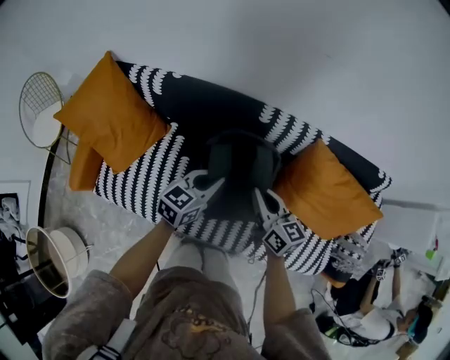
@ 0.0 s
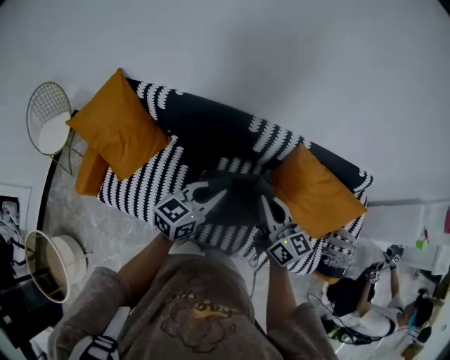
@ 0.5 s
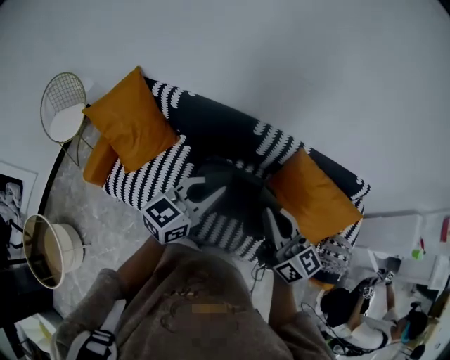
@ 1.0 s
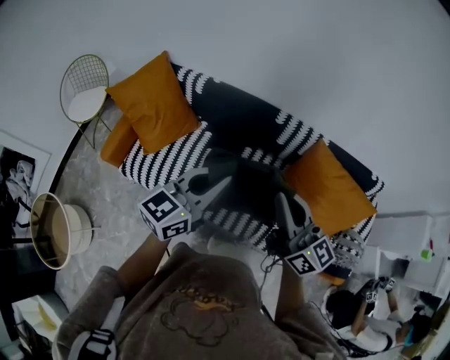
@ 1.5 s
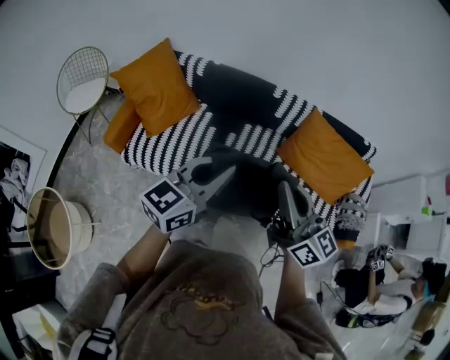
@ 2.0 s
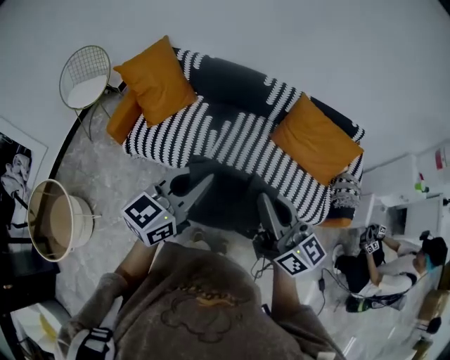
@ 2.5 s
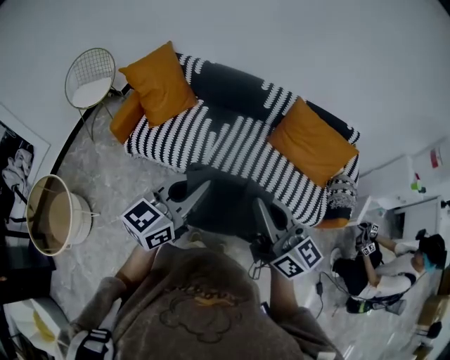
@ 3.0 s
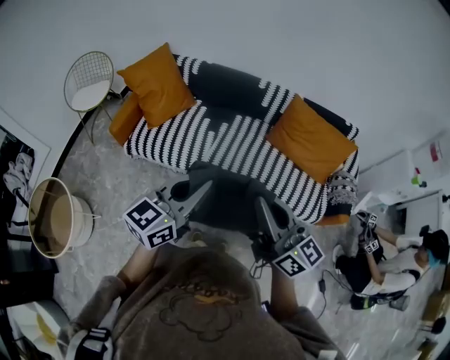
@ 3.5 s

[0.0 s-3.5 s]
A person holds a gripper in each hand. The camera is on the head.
0.0 to 2.0 s: Both grippers travel together backward and upward, roughly 50 cm. The right gripper turns by approximately 30 degrees, while the left gripper turns by approximately 20 degrees.
2.0 to 3.5 s: The grippers both shift backward by about 20 cm.

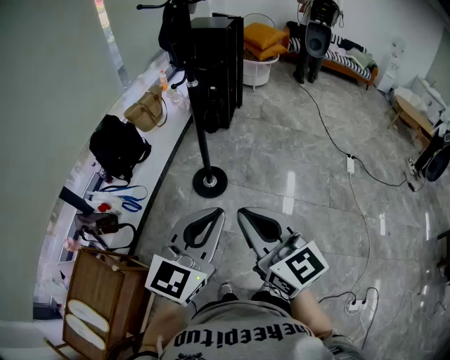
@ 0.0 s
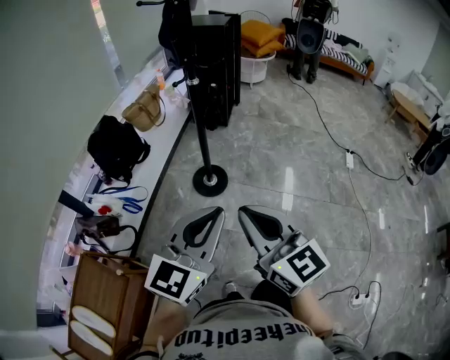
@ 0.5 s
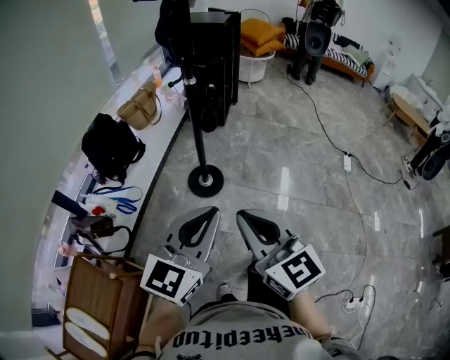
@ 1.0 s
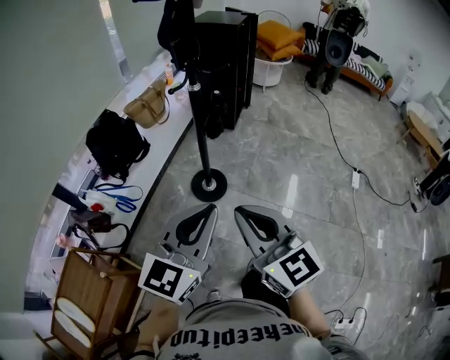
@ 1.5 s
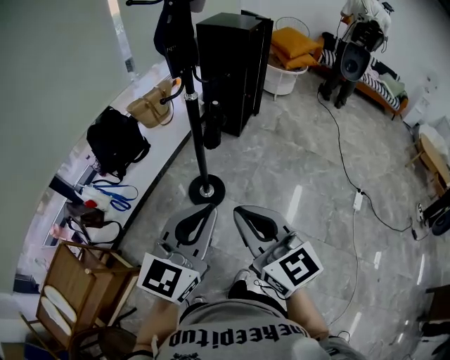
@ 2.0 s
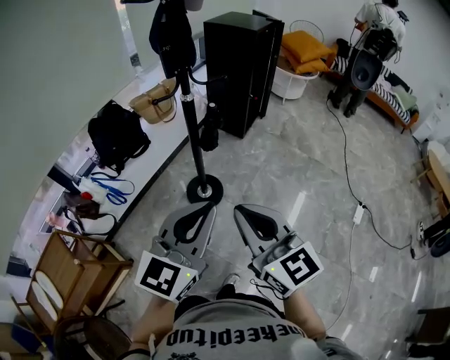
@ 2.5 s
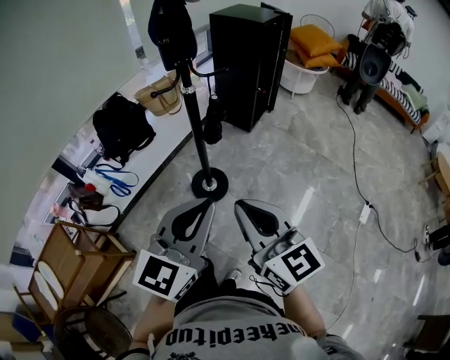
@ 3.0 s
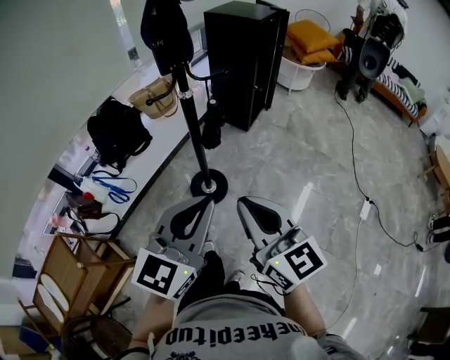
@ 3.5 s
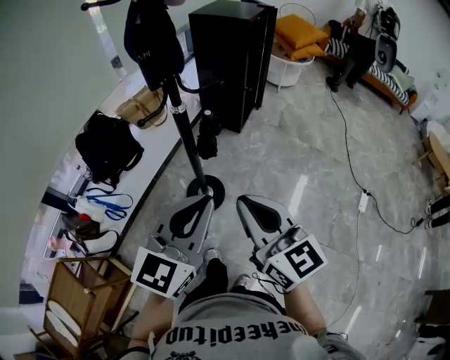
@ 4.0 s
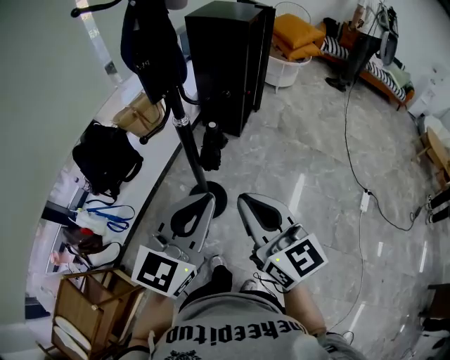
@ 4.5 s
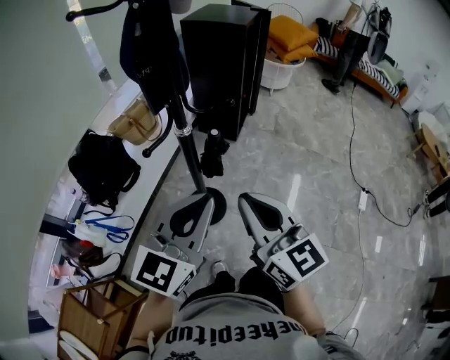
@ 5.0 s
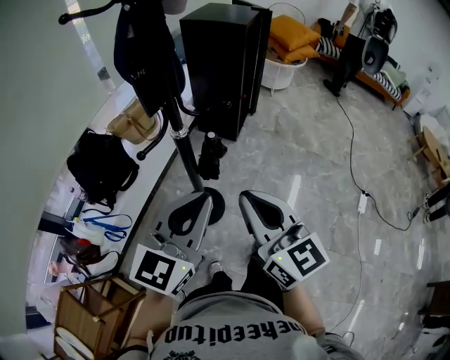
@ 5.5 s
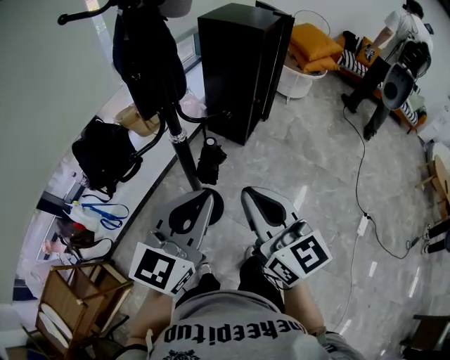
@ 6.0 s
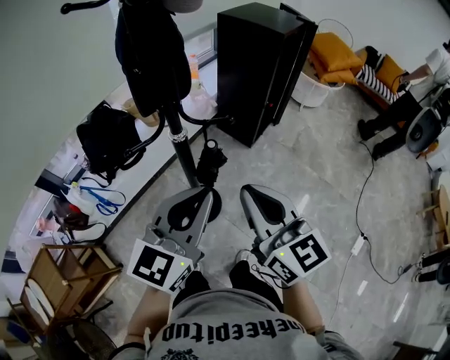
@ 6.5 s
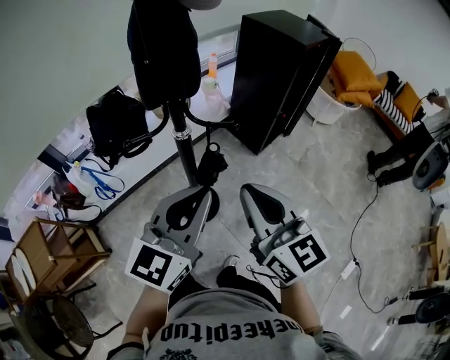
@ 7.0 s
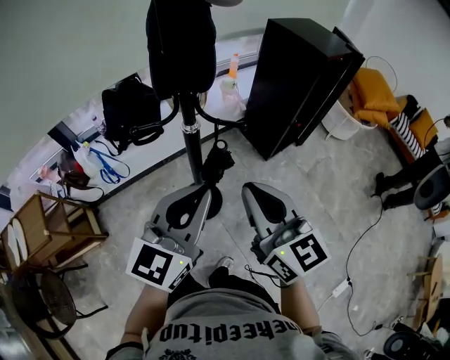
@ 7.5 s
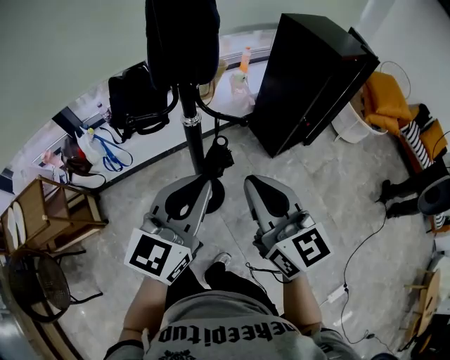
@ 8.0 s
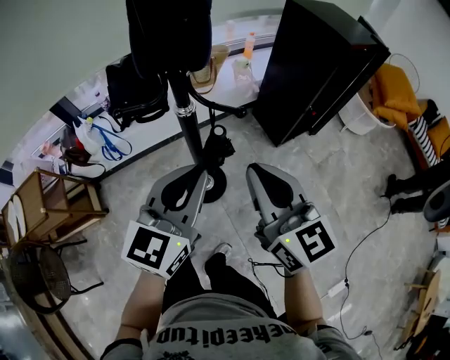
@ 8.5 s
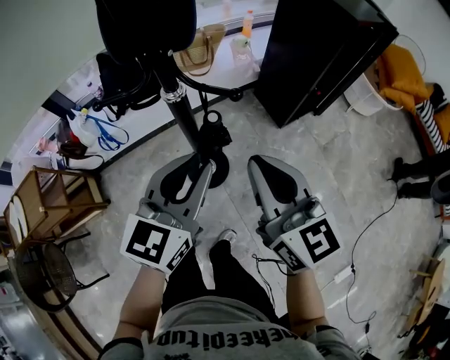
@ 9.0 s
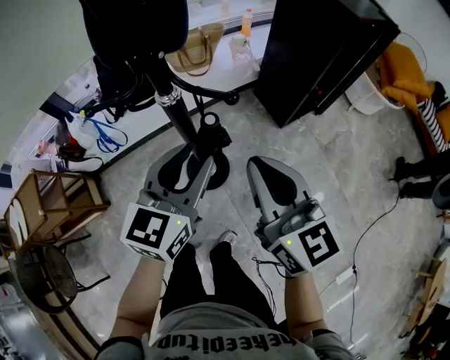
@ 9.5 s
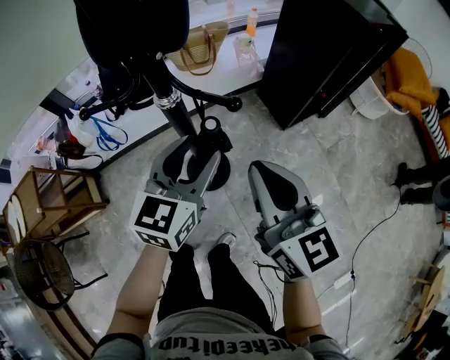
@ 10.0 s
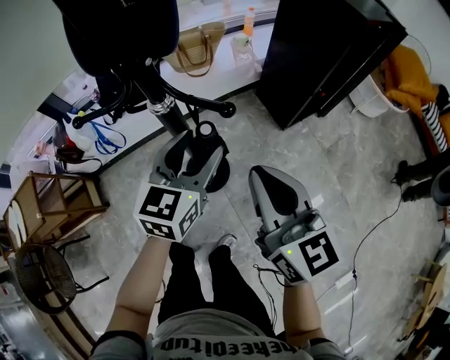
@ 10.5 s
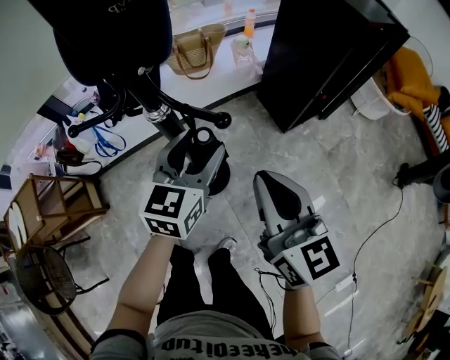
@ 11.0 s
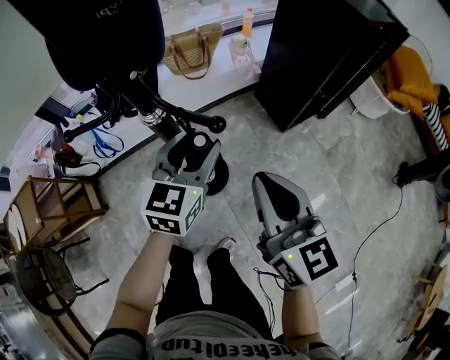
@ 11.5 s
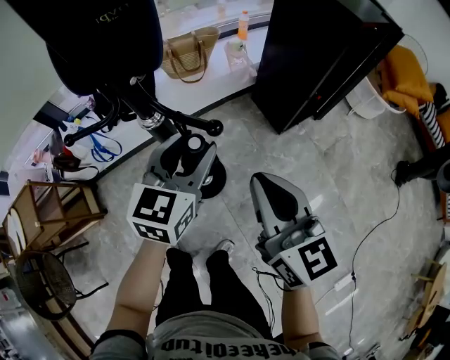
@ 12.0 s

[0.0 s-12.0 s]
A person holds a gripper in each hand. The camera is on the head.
0.0 to 2.0 s: Both grippers travel together forward and to the right, some 15 cm.
2.0 to 4.0 s: The two grippers go approximately 15 cm forward.
4.0 to 6.0 s: Both grippers move forward, about 15 cm.
6.0 to 8.0 s: The left gripper moves approximately 5 cm, and turns by about 30 degrees. Meanwhile the right gripper moves some 10 cm, and changes its angle by approximately 30 degrees.
8.0 to 10.0 s: The left gripper shifts about 15 cm downward and forward, and opens its fingers; the right gripper shifts approximately 10 cm downward and forward.
10.0 to 12.0 s: The left gripper moves about 5 cm.

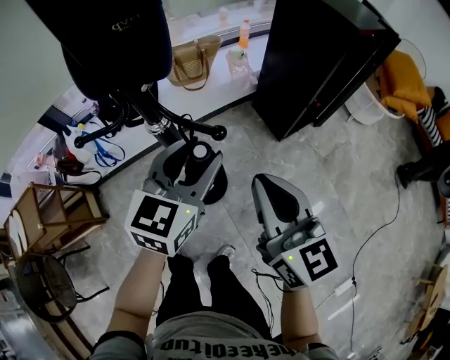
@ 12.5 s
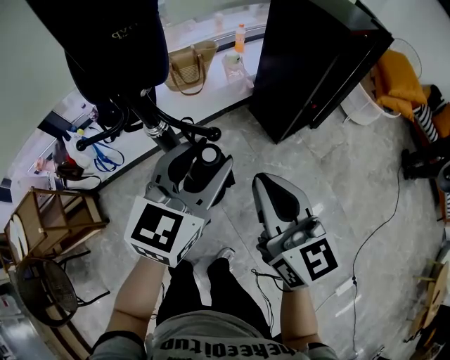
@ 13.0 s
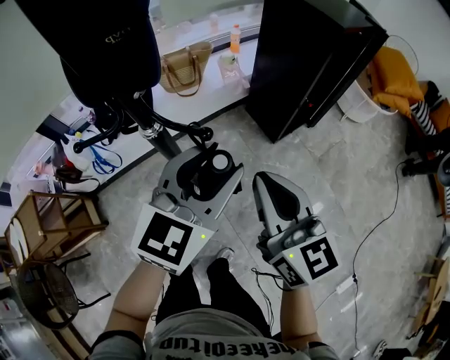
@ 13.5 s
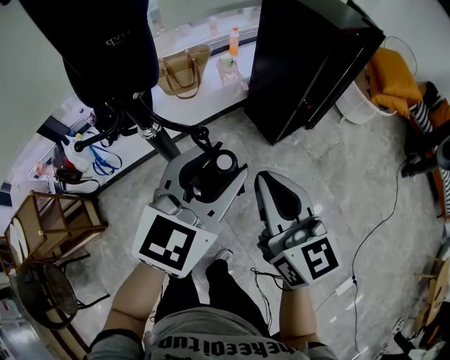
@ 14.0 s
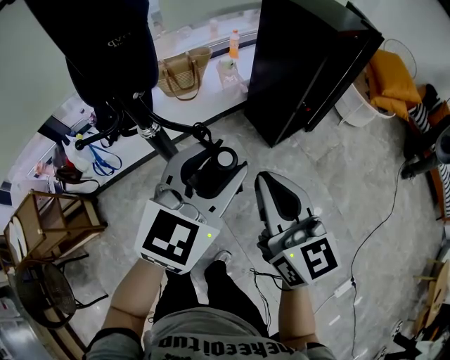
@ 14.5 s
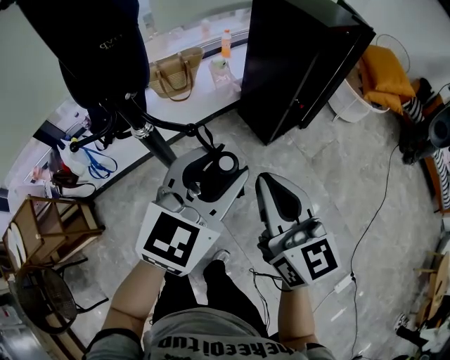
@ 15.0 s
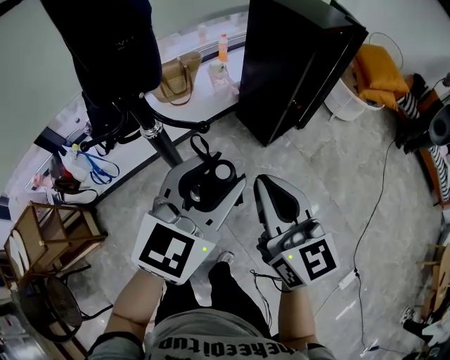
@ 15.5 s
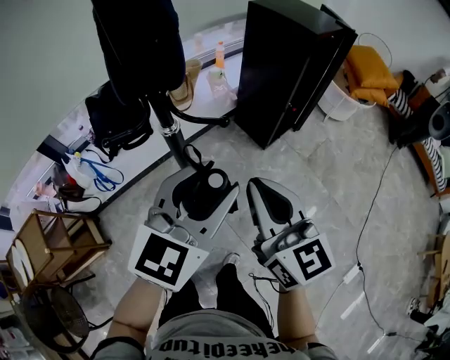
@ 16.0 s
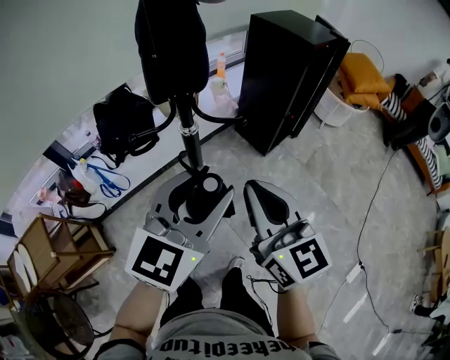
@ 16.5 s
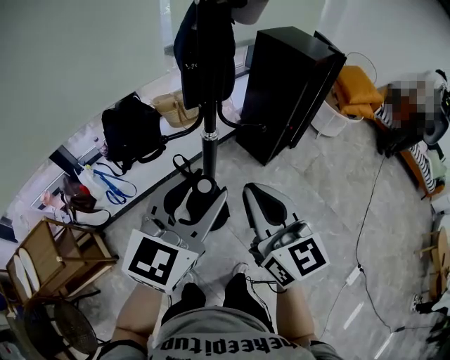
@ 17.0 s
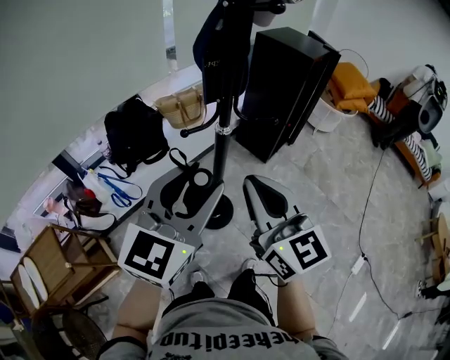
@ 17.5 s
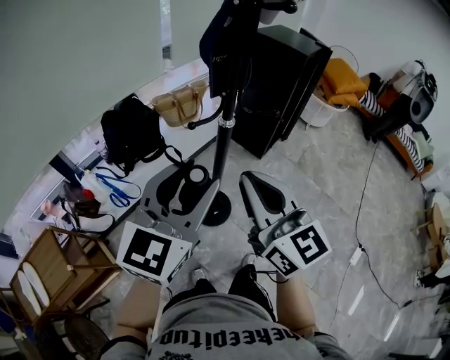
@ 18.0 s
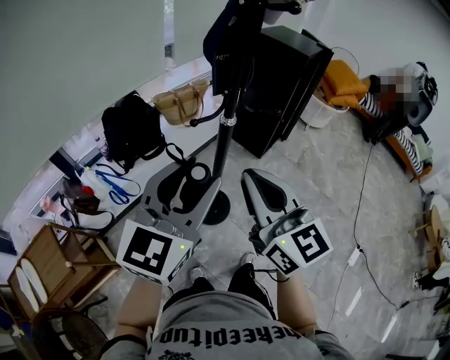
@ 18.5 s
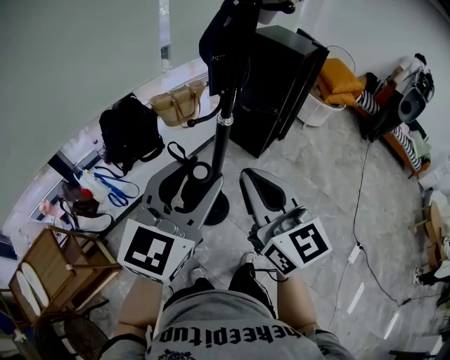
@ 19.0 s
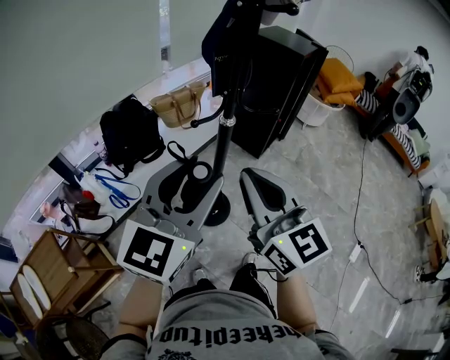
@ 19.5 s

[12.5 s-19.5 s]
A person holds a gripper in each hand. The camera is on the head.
12.5 to 14.5 s: The left gripper goes roughly 10 cm to the right and upward.
14.5 to 16.0 s: The grippers both shift backward and to the left by about 10 cm.
16.0 to 17.5 s: Both grippers move to the left and backward, approximately 20 cm.
17.5 to 19.5 s: The right gripper changes place by approximately 5 cm, while the left gripper ends up some 5 cm from where it was.

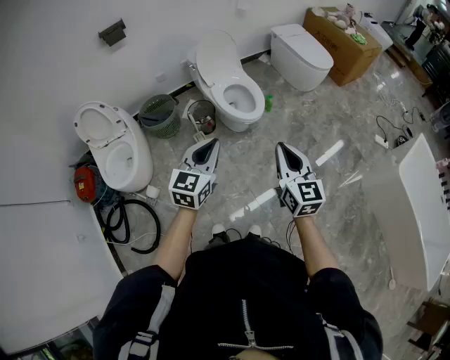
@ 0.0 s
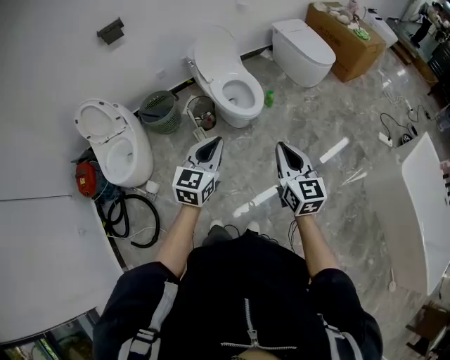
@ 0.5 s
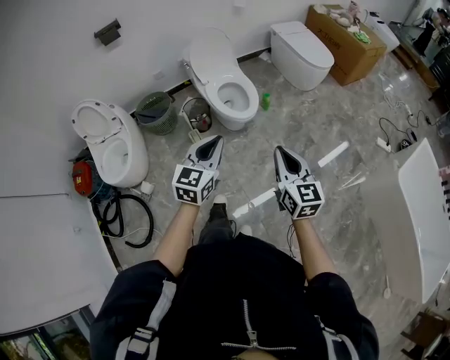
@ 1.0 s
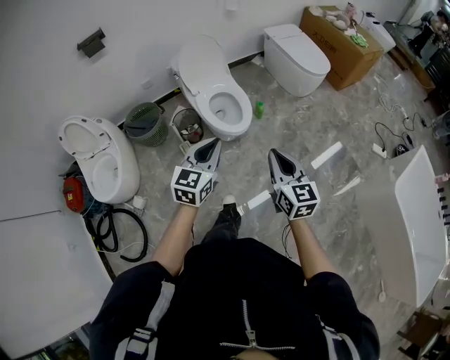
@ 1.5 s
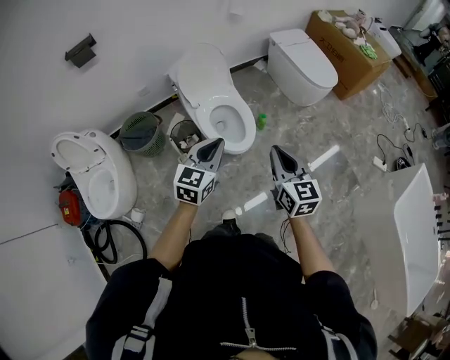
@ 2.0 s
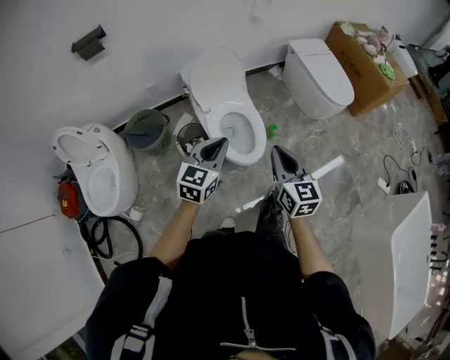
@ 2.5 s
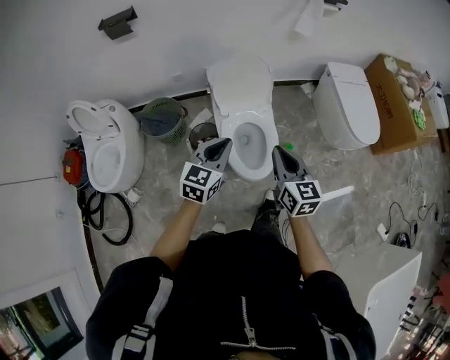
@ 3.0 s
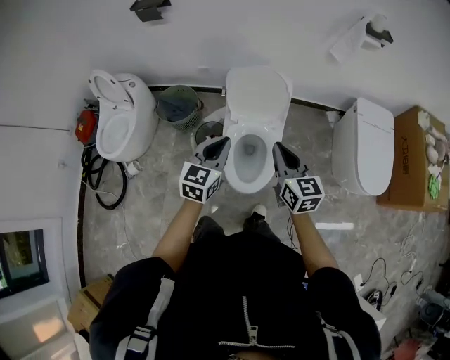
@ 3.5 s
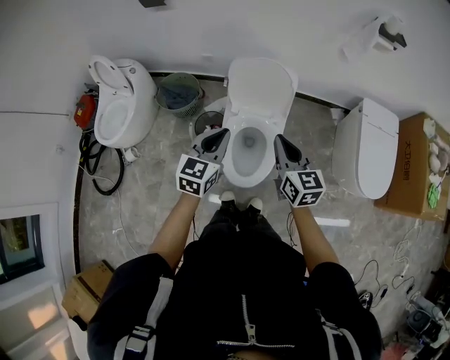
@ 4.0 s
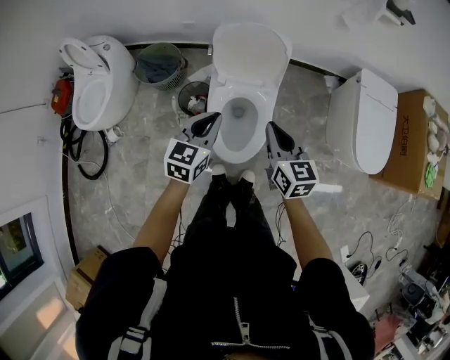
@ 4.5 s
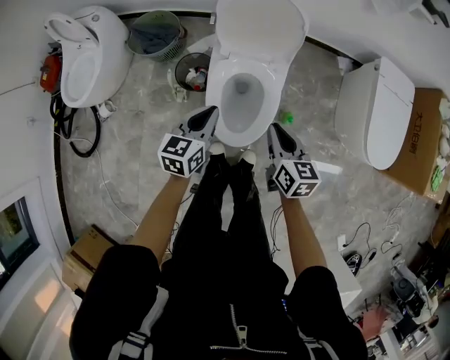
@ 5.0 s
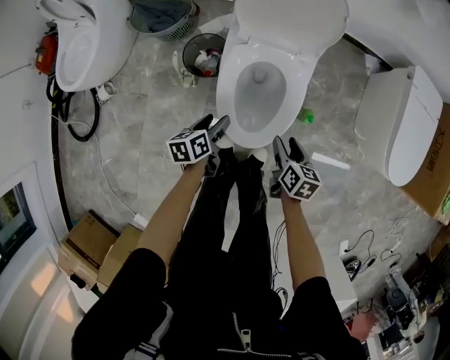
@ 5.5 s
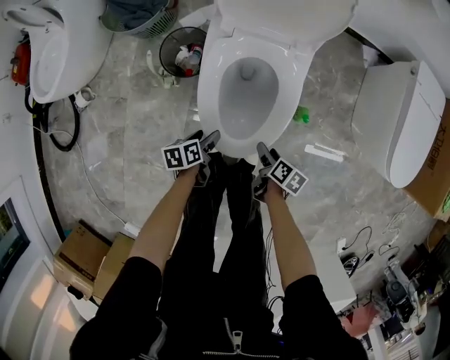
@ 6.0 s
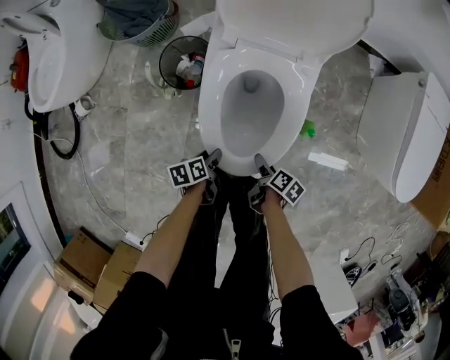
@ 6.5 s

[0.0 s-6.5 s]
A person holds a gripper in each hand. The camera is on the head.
0.0 to 2.0 s: Both grippers travel together forward, approximately 30 cm.
2.0 to 4.5 s: The right gripper ends up some 40 cm from where it was, and changes its angle by roughly 40 degrees; the left gripper moves about 30 cm, and turns by roughly 40 degrees.
4.5 to 6.5 s: Both grippers travel together downward, roughly 60 cm. The right gripper rolls clockwise, seen from behind, by some 60 degrees, and opens, while the left gripper rotates around the line of its fingers by some 60 degrees, counterclockwise from behind, and opens up.
